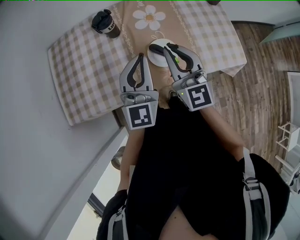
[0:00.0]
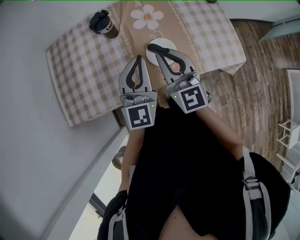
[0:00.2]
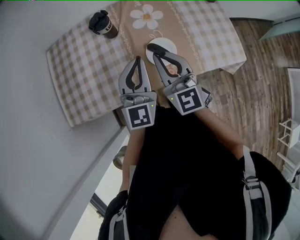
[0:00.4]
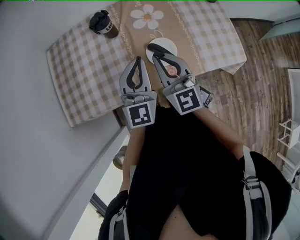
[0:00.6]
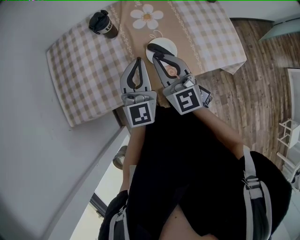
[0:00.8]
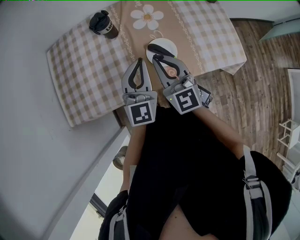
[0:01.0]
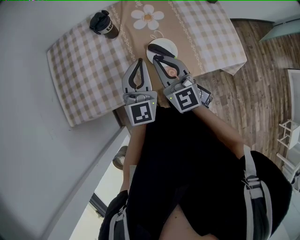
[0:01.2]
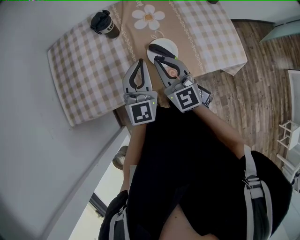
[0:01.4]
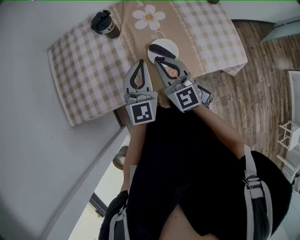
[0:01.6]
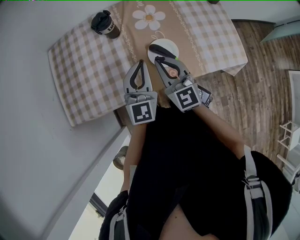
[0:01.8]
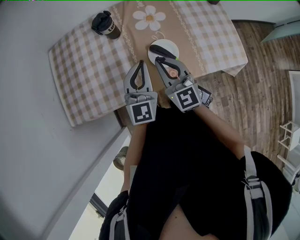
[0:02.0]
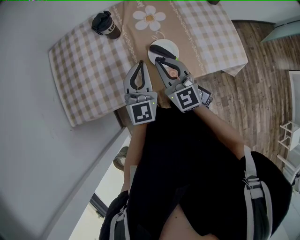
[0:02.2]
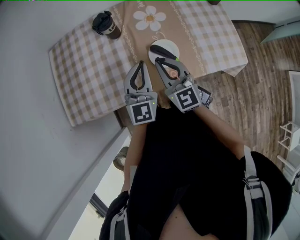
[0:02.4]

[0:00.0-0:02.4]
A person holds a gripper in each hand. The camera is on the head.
0:00.0 to 0:01.2: The two grippers go roughly 5 cm downward.
0:01.2 to 0:02.4: There are only small adjustments of the grippers.

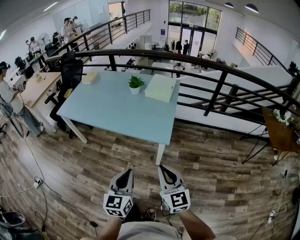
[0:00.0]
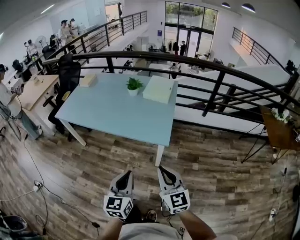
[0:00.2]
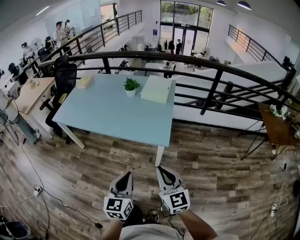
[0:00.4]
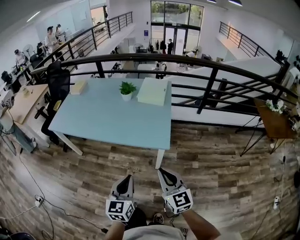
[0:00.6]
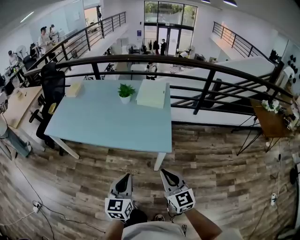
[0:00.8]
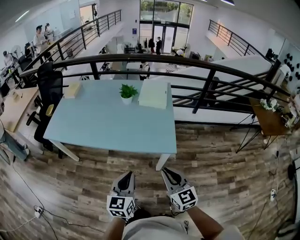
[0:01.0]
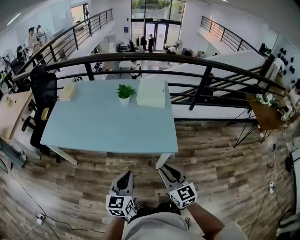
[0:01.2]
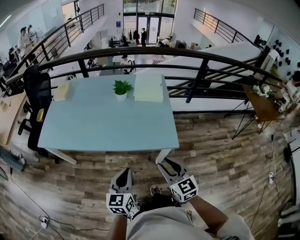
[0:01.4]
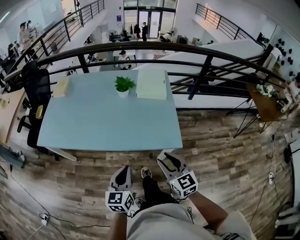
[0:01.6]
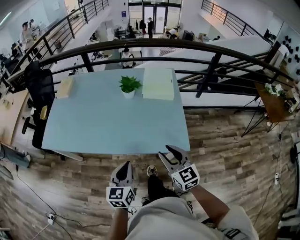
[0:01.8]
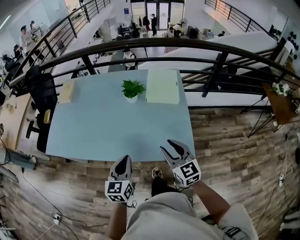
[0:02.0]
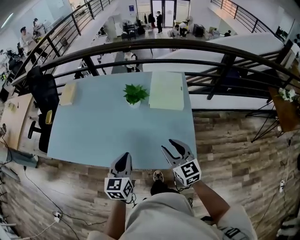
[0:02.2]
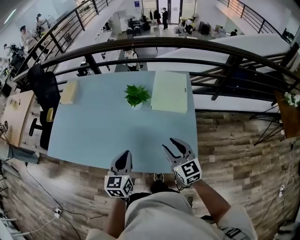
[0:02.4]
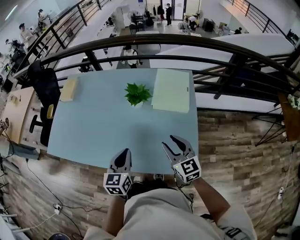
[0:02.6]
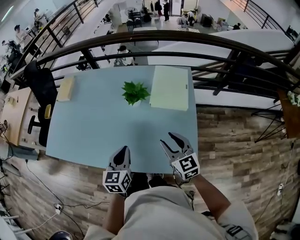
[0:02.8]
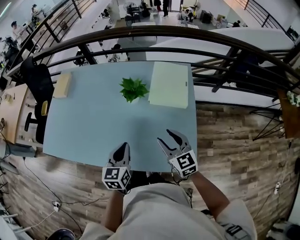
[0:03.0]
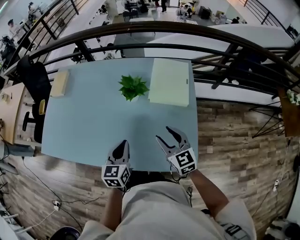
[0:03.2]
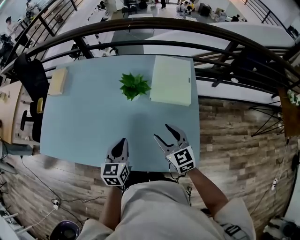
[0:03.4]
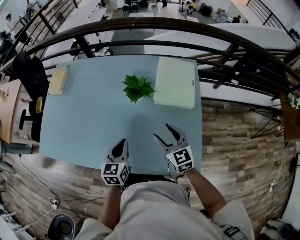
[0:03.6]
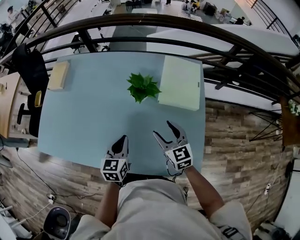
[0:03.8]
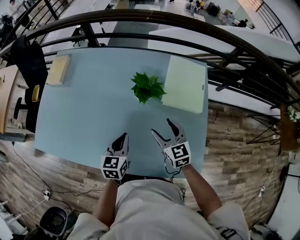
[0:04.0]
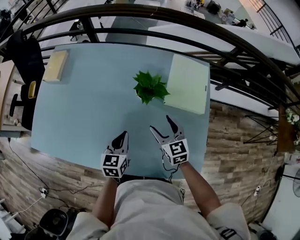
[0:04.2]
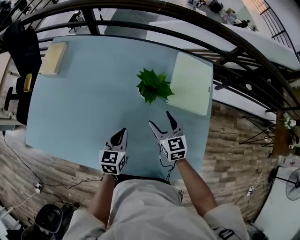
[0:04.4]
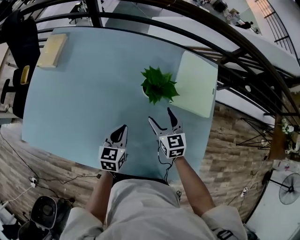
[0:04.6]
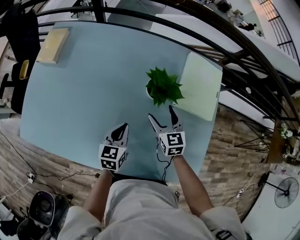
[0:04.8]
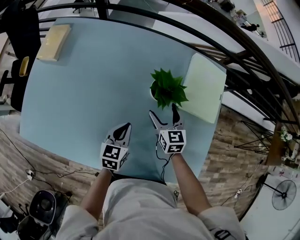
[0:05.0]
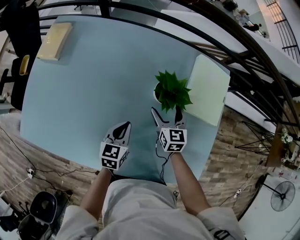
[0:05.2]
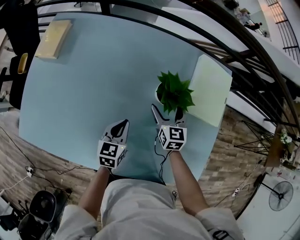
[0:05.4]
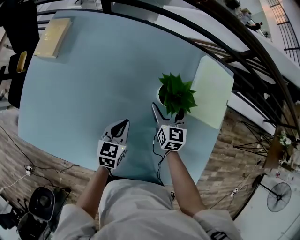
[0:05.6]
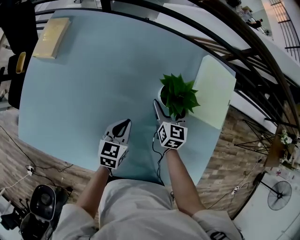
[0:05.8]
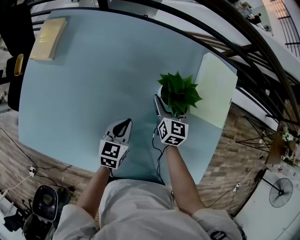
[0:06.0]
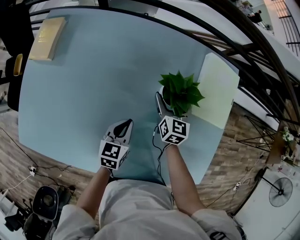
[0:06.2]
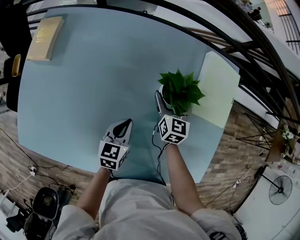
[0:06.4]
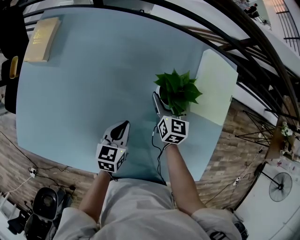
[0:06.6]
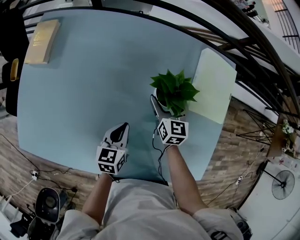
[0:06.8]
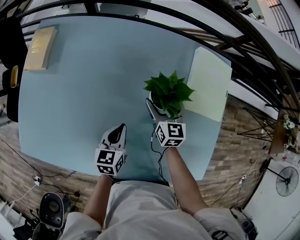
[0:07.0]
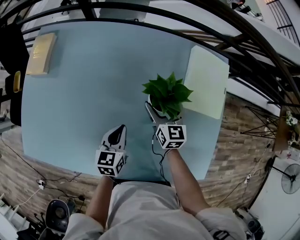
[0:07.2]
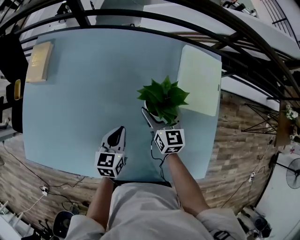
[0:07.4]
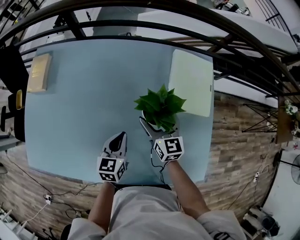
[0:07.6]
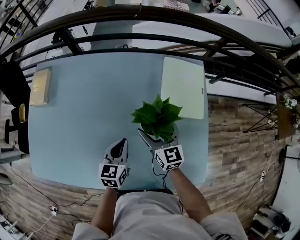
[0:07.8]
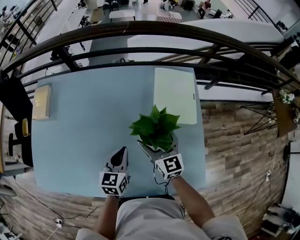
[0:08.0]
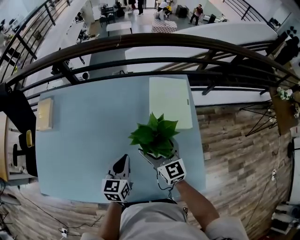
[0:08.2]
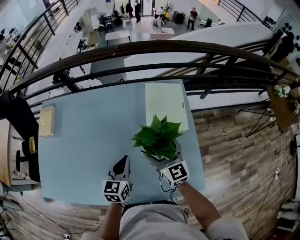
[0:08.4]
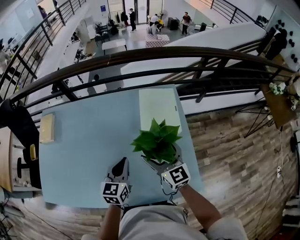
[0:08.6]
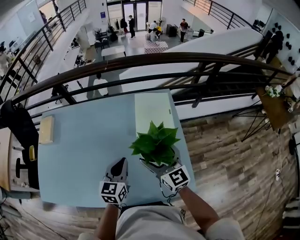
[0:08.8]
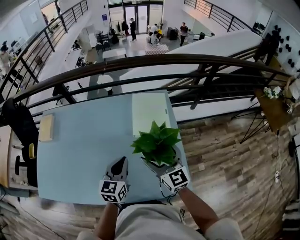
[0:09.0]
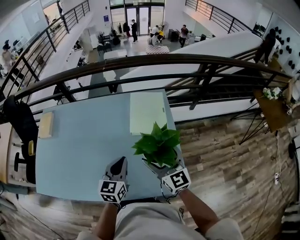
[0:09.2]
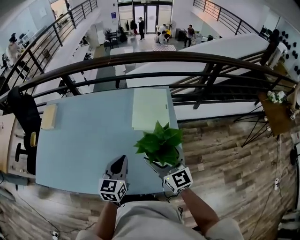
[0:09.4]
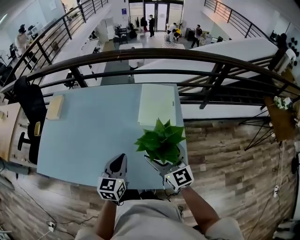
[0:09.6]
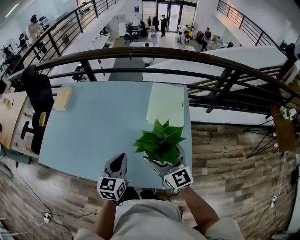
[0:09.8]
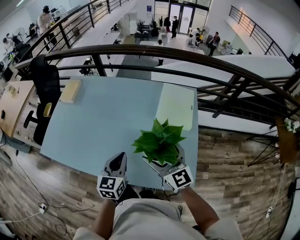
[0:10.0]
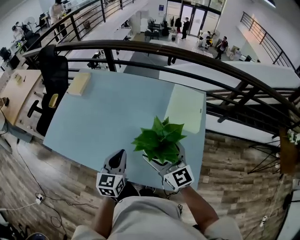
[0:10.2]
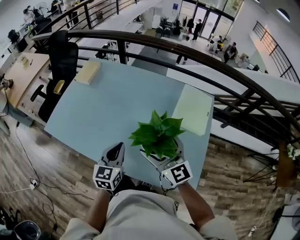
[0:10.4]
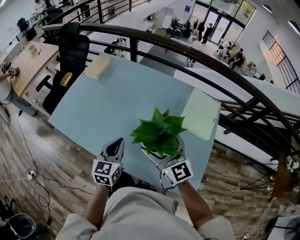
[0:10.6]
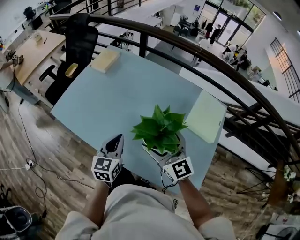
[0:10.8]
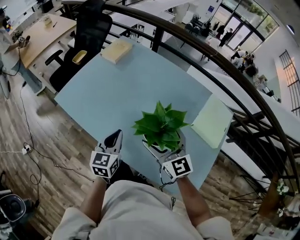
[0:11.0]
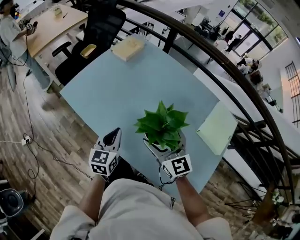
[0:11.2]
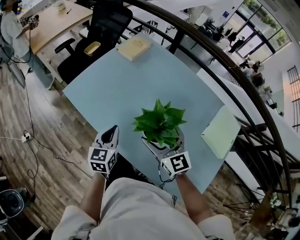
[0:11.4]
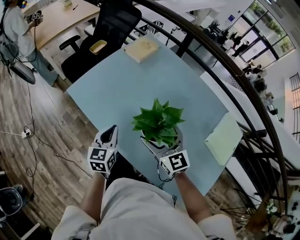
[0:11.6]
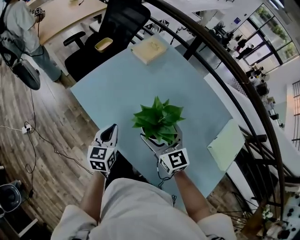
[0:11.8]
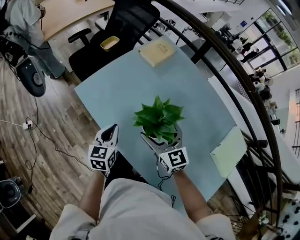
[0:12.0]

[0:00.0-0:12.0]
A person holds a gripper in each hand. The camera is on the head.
0:00.0 to 0:01.6: Both grippers move forward and to the left, approximately 25 cm.
0:01.6 to 0:03.0: The two grippers go some 30 cm forward.
0:03.0 to 0:04.4: Both grippers move forward, downward and to the left, about 20 cm.
0:04.4 to 0:06.0: The right gripper shifts roughly 15 cm forward and downward, and swivels some 20 degrees. The left gripper is displaced forward and downward by approximately 10 cm.
0:06.0 to 0:07.6: The right gripper is displaced upward and backward by some 10 cm. Meanwhile the left gripper goes some 5 cm upward.
0:07.6 to 0:09.0: The left gripper heads upward and to the right, covering approximately 20 cm, while the right gripper is displaced upward, to the right and backward by roughly 25 cm.
0:09.0 to 0:10.4: The left gripper ends up roughly 15 cm from where it was, and turns by about 30 degrees; the right gripper changes place by about 15 cm, and rotates about 30 degrees.
0:10.4 to 0:12.0: The left gripper moves approximately 35 cm, and turns by some 30 degrees, while the right gripper moves approximately 35 cm, and turns by roughly 30 degrees.

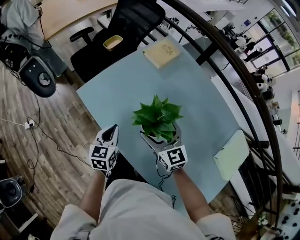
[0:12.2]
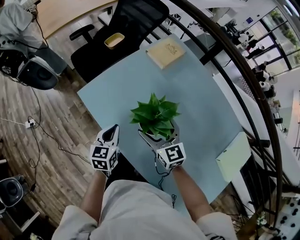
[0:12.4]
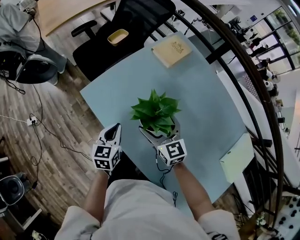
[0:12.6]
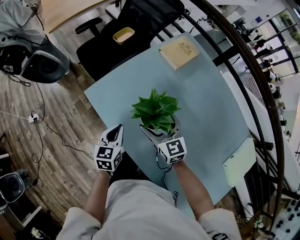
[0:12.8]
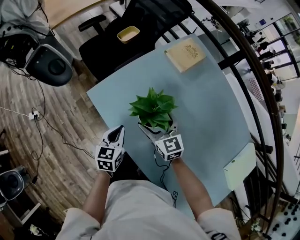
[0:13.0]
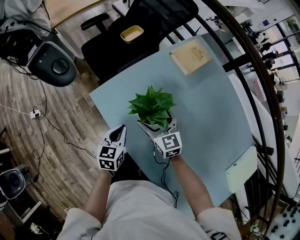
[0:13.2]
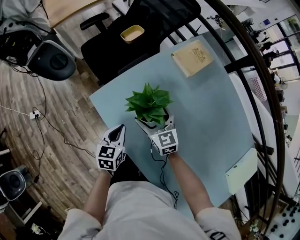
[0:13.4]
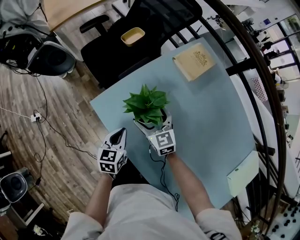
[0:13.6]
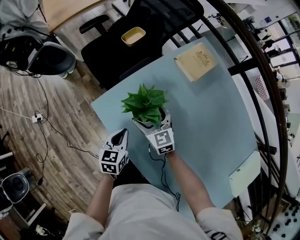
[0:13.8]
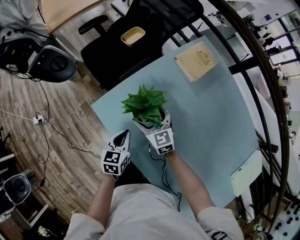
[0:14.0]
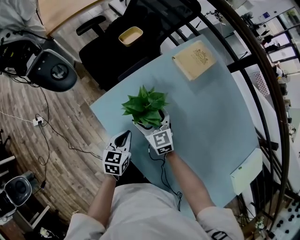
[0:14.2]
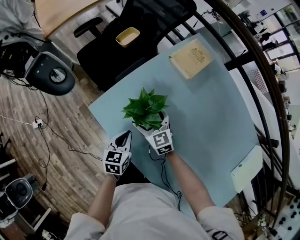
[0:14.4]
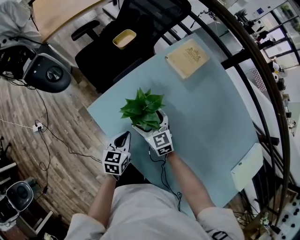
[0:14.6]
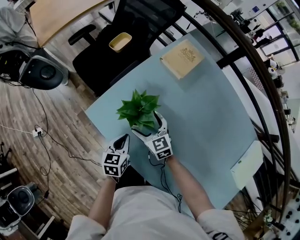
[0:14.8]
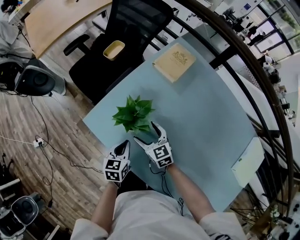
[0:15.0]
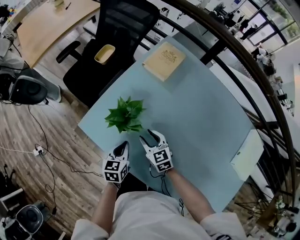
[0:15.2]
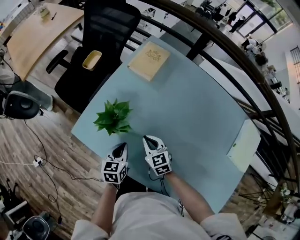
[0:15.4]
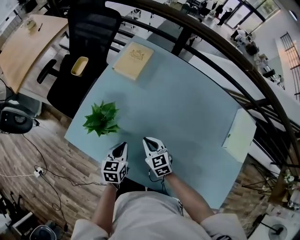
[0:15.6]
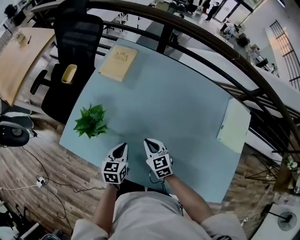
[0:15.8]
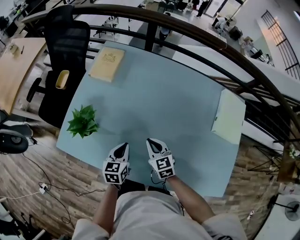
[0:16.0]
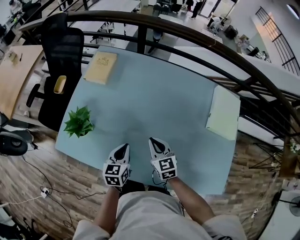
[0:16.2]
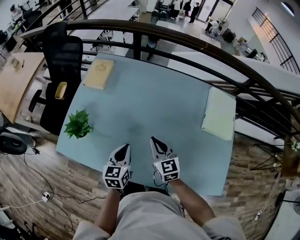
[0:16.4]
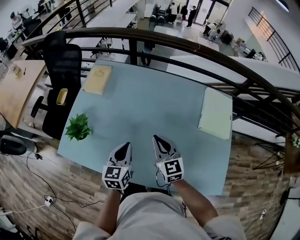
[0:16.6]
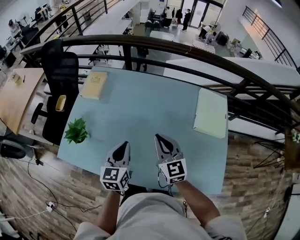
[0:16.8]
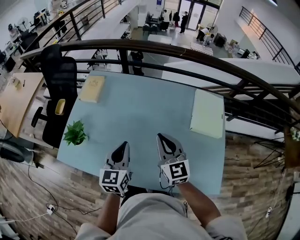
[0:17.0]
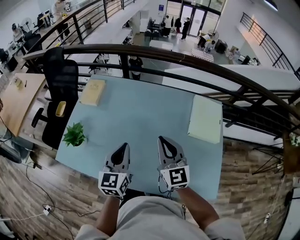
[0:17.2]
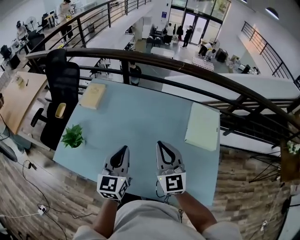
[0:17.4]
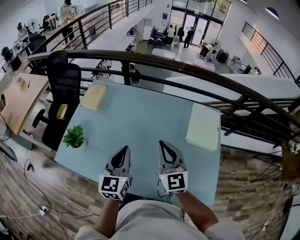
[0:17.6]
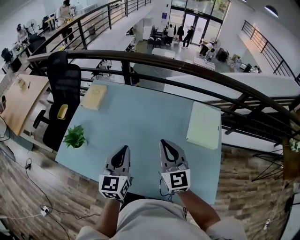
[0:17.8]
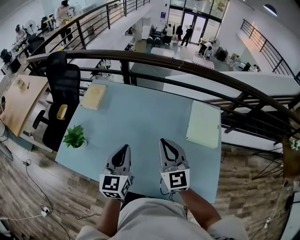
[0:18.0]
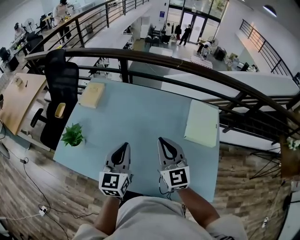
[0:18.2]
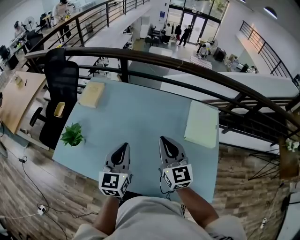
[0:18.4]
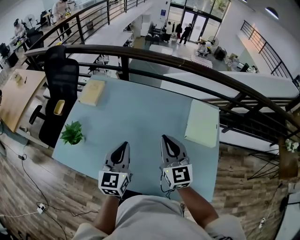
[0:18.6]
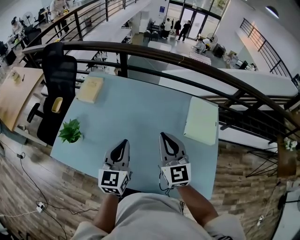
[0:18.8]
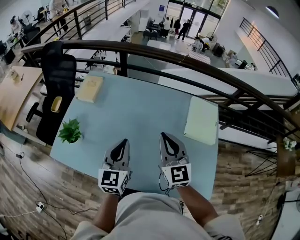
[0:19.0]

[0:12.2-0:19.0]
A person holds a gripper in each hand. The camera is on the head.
0:12.2 to 0:13.6: The left gripper moves forward, downward and to the left, about 15 cm. The right gripper goes about 25 cm forward, to the left and downward.
0:13.6 to 0:15.0: The right gripper changes place by roughly 5 cm.
0:15.0 to 0:16.2: The left gripper ends up roughly 25 cm from where it was, and turns by roughly 30 degrees. Meanwhile the right gripper changes place by approximately 30 cm, swivels roughly 40 degrees, and closes its fingers.
0:16.2 to 0:17.6: Both grippers travel together upward and to the right, about 25 cm. The right gripper turns by approximately 30 degrees; the left gripper swivels about 30 degrees.
0:17.6 to 0:19.0: The grippers stay close to where they were, moving slightly.

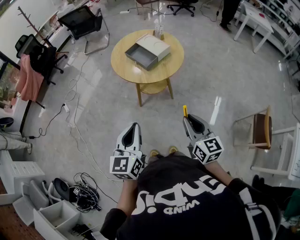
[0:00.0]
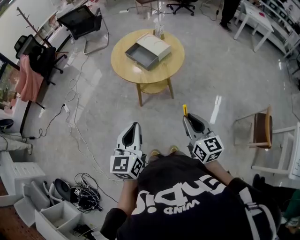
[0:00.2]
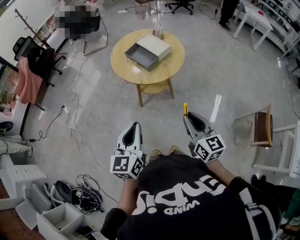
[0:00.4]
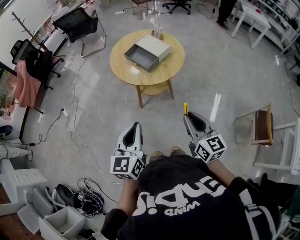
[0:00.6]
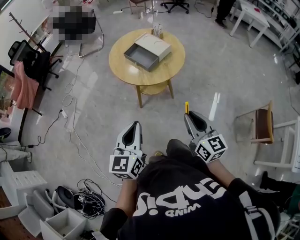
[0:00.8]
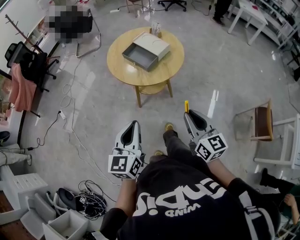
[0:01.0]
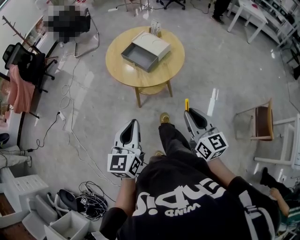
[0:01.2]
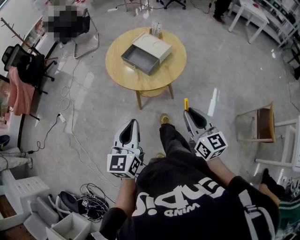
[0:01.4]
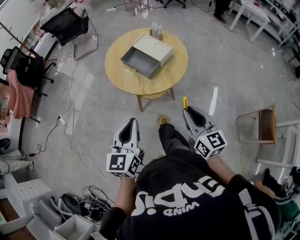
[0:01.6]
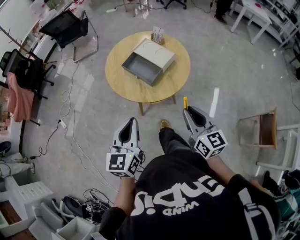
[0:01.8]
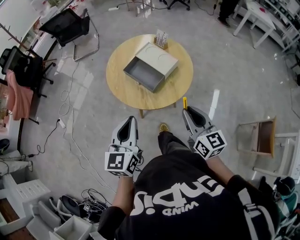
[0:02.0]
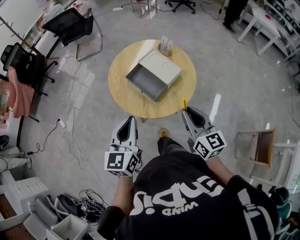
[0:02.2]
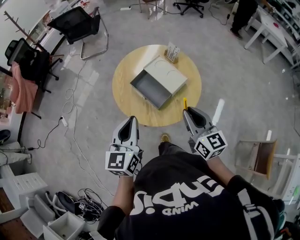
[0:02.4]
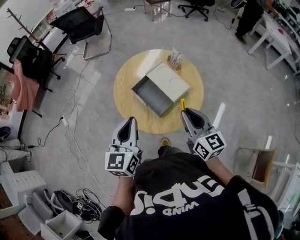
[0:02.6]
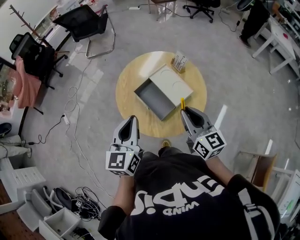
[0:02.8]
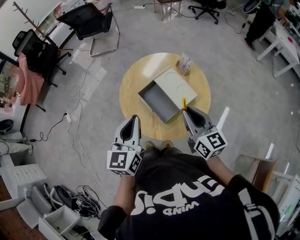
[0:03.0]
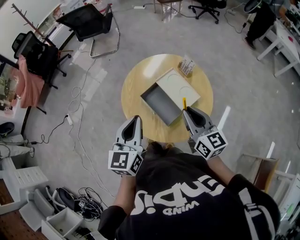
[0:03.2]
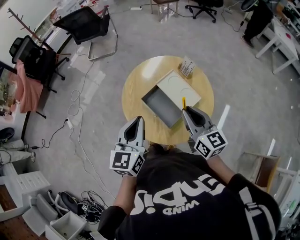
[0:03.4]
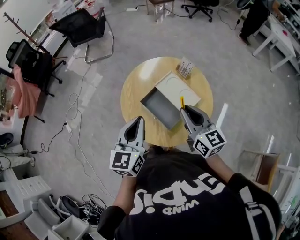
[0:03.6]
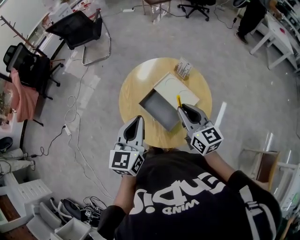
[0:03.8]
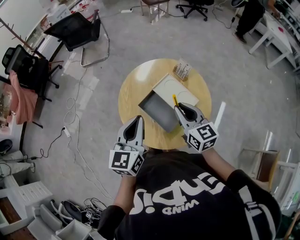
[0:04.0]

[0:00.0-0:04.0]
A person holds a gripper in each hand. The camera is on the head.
0:00.0 to 0:01.4: The two grippers go approximately 10 cm forward.
0:01.4 to 0:02.6: The grippers both shift forward by approximately 30 cm.
0:02.6 to 0:04.0: The grippers both shift forward by about 15 cm.
